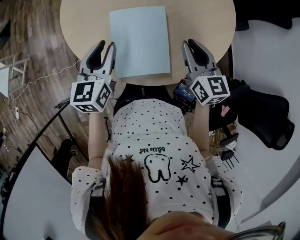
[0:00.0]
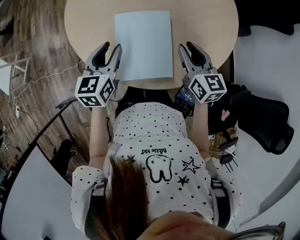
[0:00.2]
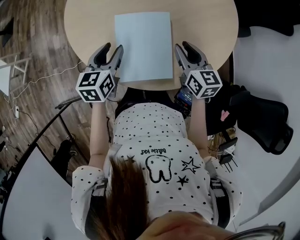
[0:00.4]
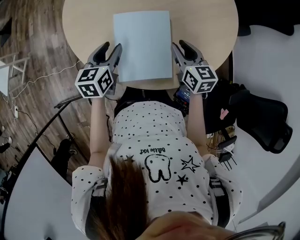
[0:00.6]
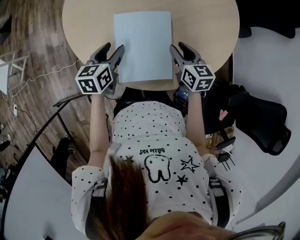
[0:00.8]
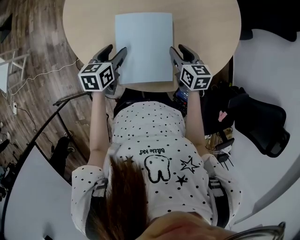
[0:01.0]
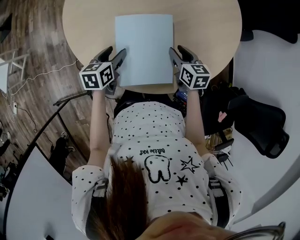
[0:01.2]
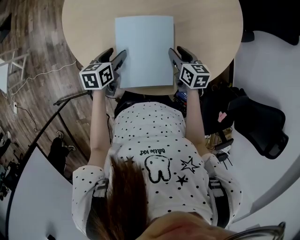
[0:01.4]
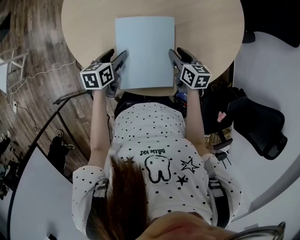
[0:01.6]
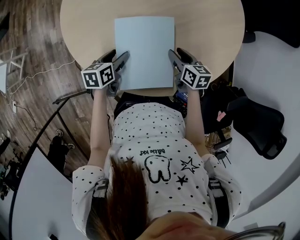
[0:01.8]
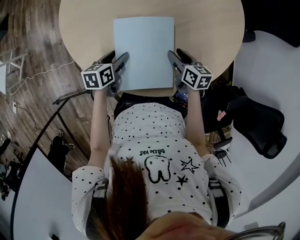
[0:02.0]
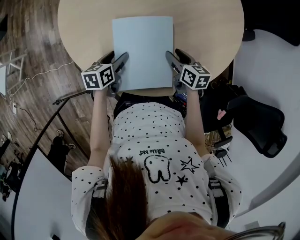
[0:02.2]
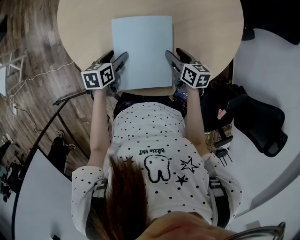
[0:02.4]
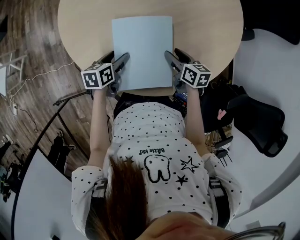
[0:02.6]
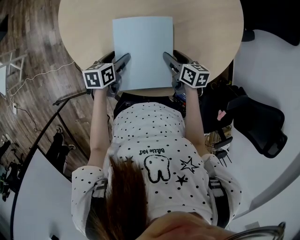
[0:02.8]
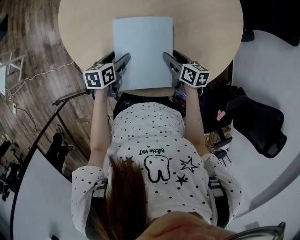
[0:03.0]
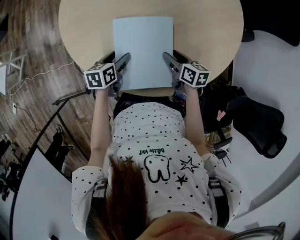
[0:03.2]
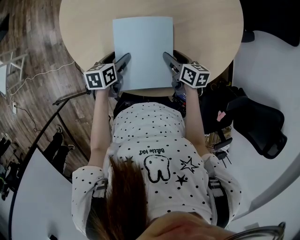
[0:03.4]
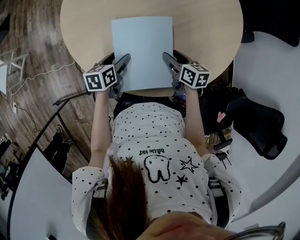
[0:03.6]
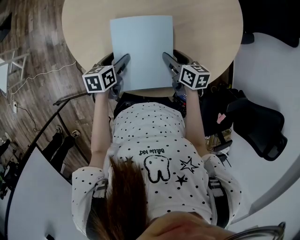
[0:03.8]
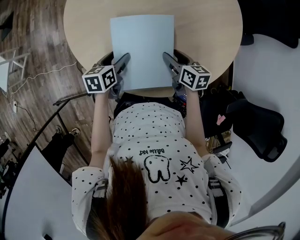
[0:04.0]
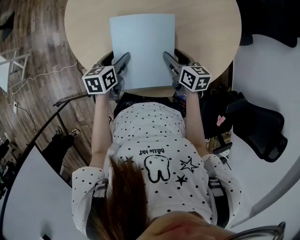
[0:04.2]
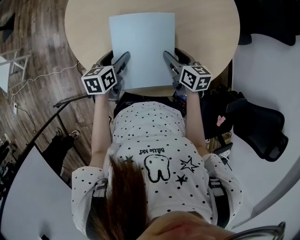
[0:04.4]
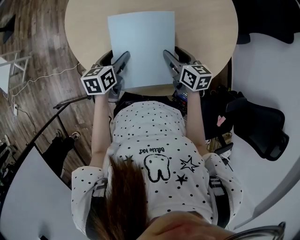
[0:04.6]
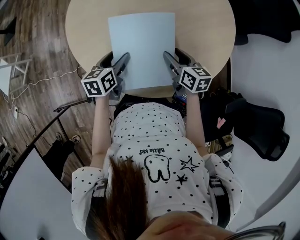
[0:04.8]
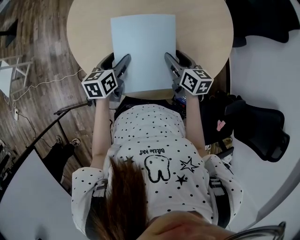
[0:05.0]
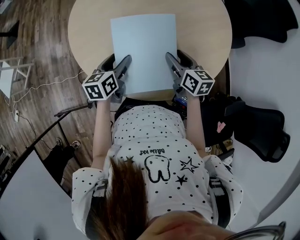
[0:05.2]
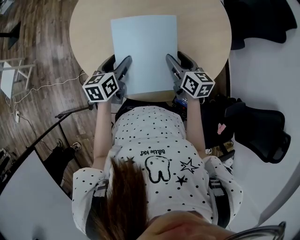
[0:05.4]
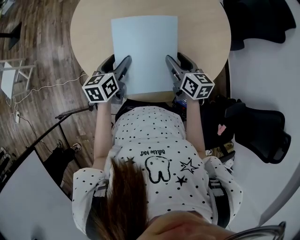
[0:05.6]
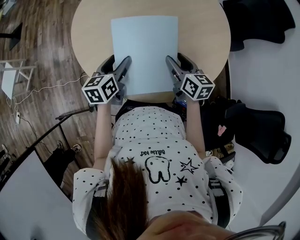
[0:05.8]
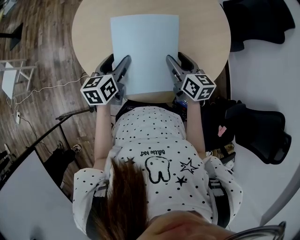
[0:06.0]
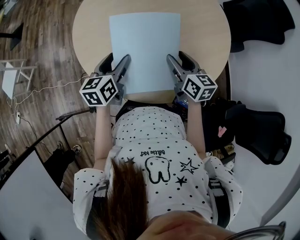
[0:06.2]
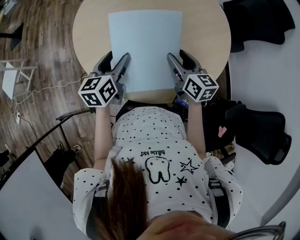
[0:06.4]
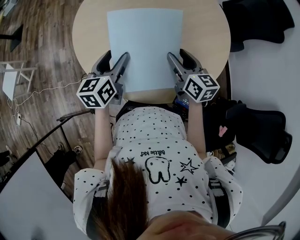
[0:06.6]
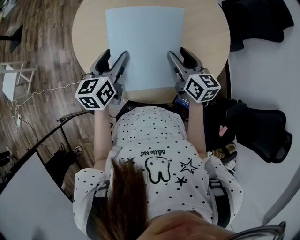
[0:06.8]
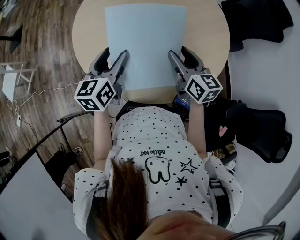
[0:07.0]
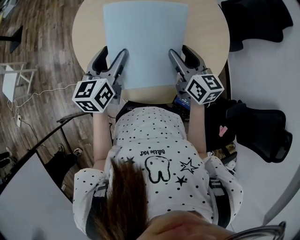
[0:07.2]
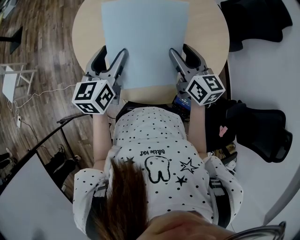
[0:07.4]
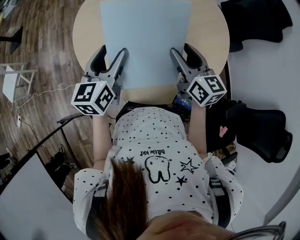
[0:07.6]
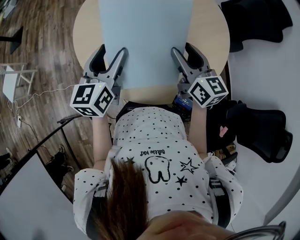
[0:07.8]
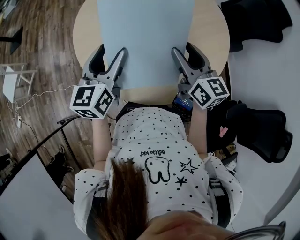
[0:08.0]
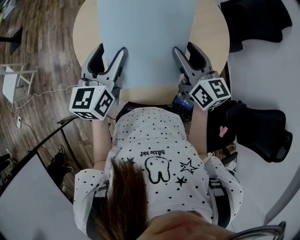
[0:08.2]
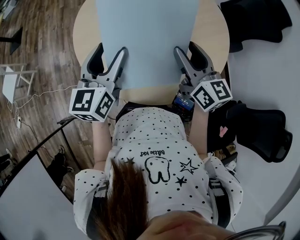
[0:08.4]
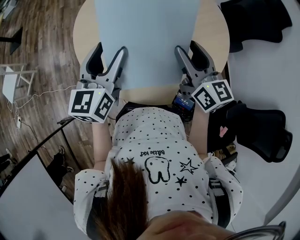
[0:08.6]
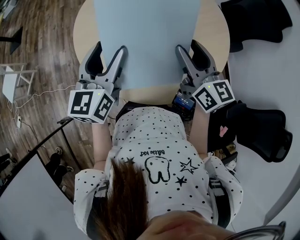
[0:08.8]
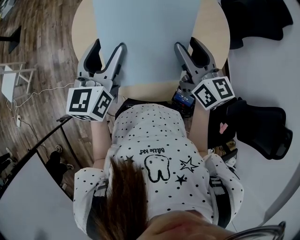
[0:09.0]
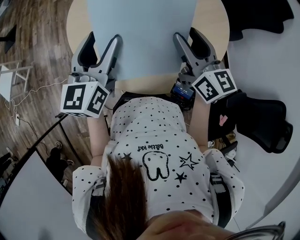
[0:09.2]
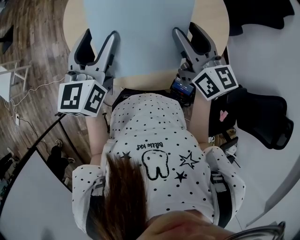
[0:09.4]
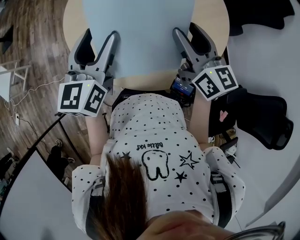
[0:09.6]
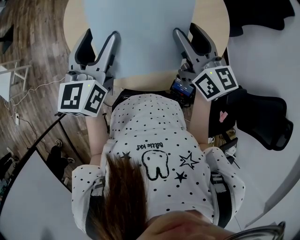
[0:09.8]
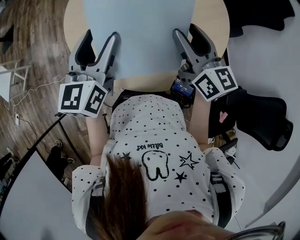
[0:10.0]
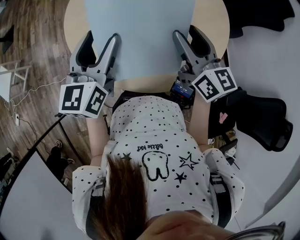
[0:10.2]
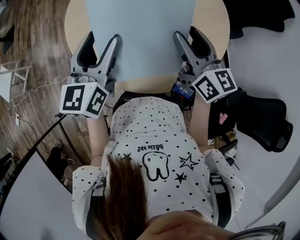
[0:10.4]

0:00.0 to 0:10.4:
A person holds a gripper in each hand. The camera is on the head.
0:00.0 to 0:01.4: The grippers both shift downward by approximately 15 cm. The left gripper changes its angle by approximately 30 degrees, and opens, while the right gripper changes its angle by roughly 20 degrees, and opens.
0:01.4 to 0:03.0: The grippers move only a little.
0:03.0 to 0:04.4: Both grippers move upward, about 5 cm.
0:04.4 to 0:06.0: The two grippers go roughly 10 cm upward.
0:06.0 to 0:07.4: Both grippers travel together upward, approximately 10 cm.
0:07.4 to 0:09.0: The grippers both shift upward by about 5 cm.
0:09.0 to 0:10.4: The two grippers keep their place.

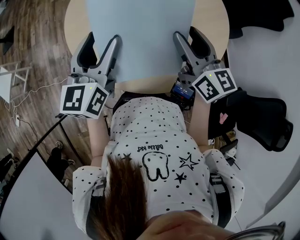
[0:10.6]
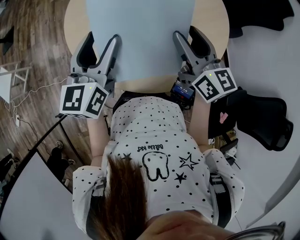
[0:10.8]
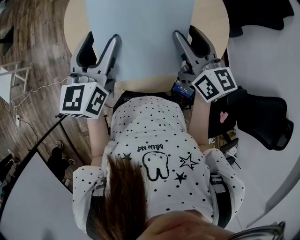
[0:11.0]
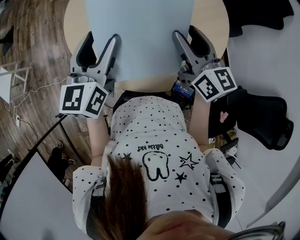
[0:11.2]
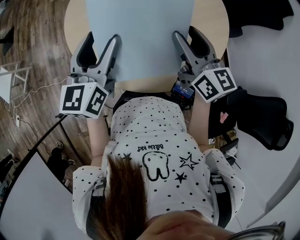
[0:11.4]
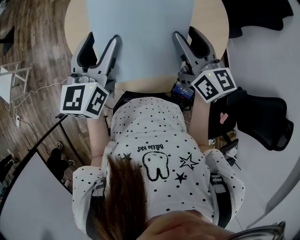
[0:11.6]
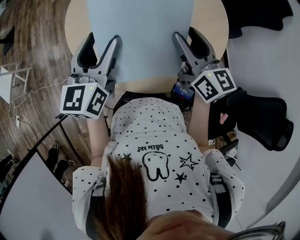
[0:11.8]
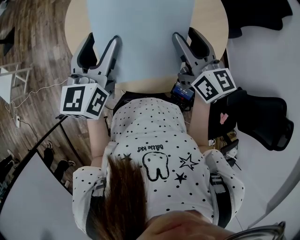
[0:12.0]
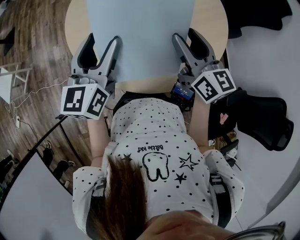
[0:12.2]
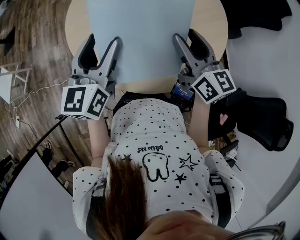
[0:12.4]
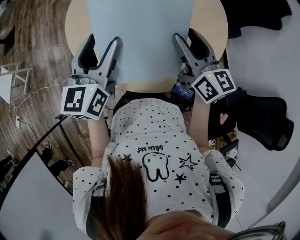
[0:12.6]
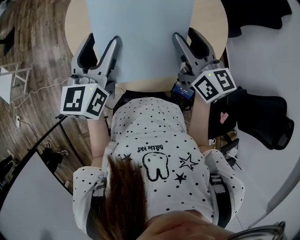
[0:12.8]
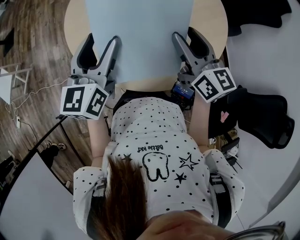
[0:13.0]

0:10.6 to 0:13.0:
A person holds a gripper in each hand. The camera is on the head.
0:10.6 to 0:13.0: Both grippers stay put.

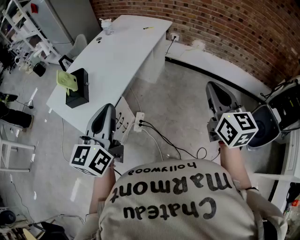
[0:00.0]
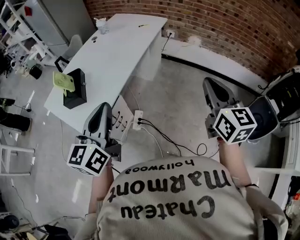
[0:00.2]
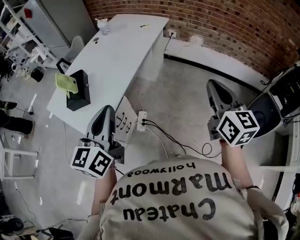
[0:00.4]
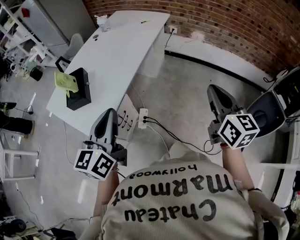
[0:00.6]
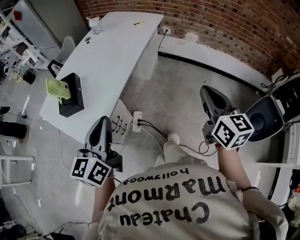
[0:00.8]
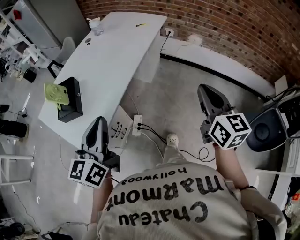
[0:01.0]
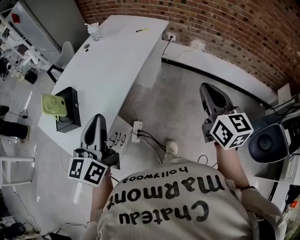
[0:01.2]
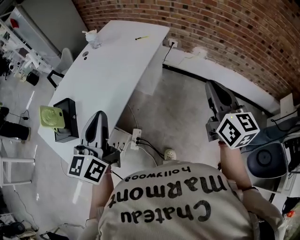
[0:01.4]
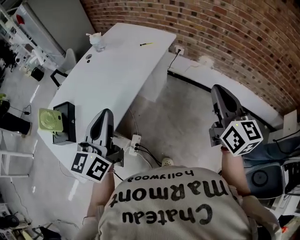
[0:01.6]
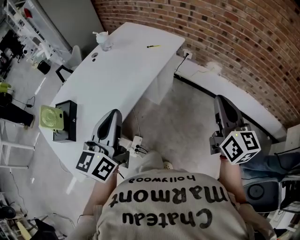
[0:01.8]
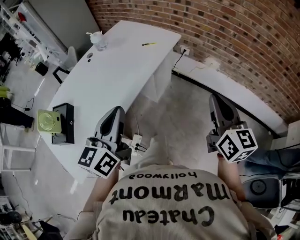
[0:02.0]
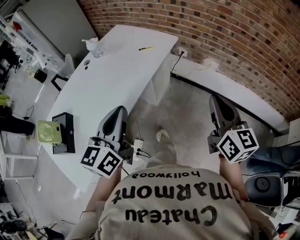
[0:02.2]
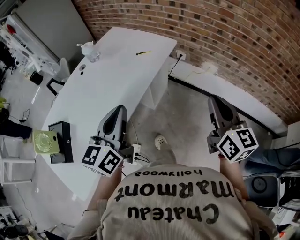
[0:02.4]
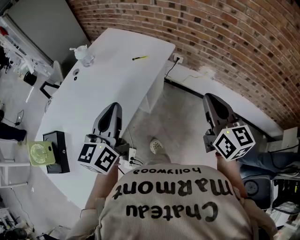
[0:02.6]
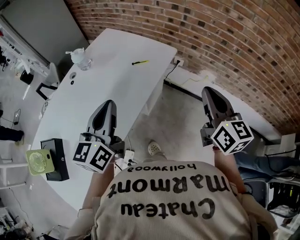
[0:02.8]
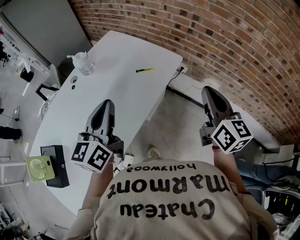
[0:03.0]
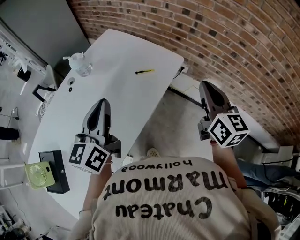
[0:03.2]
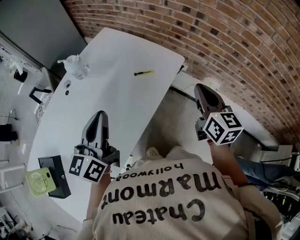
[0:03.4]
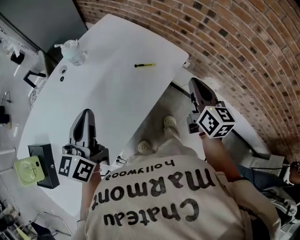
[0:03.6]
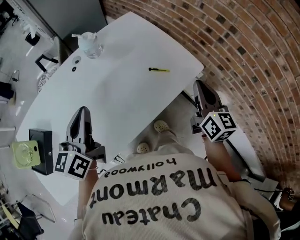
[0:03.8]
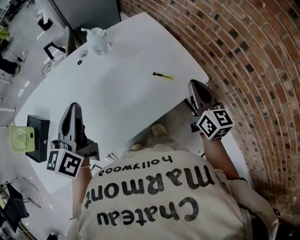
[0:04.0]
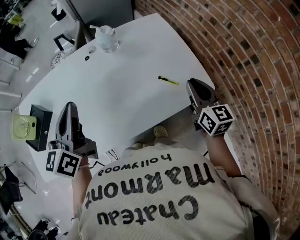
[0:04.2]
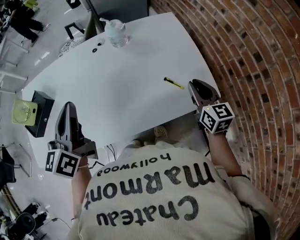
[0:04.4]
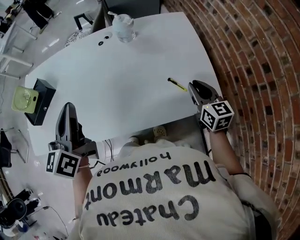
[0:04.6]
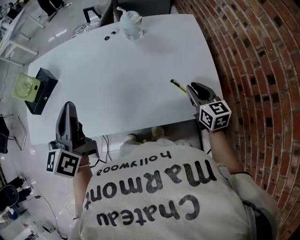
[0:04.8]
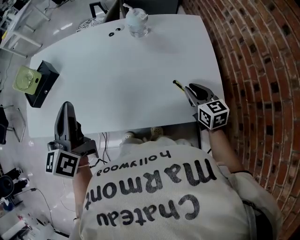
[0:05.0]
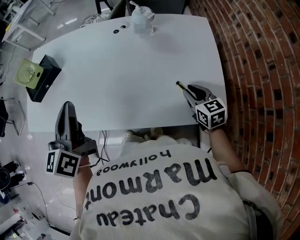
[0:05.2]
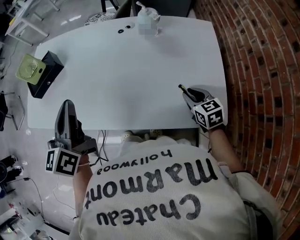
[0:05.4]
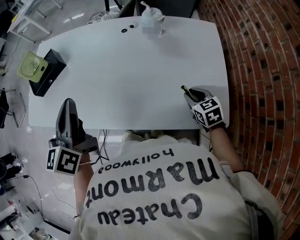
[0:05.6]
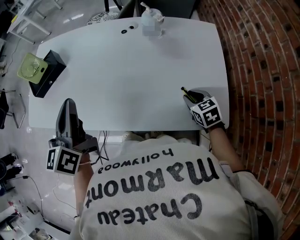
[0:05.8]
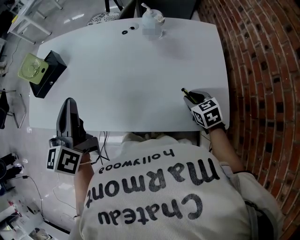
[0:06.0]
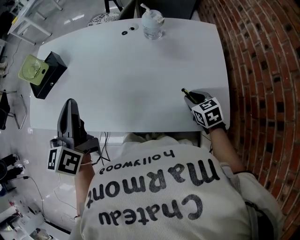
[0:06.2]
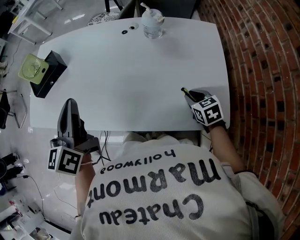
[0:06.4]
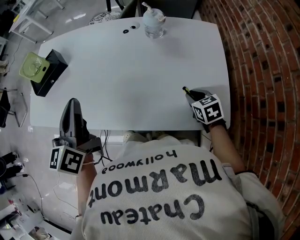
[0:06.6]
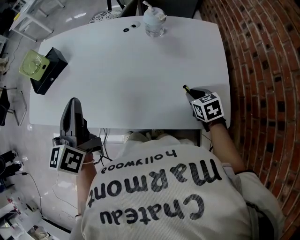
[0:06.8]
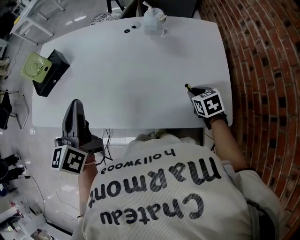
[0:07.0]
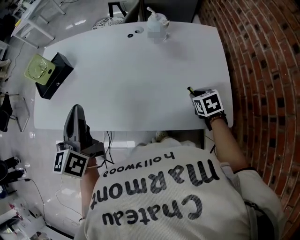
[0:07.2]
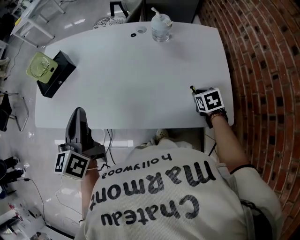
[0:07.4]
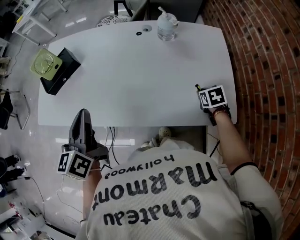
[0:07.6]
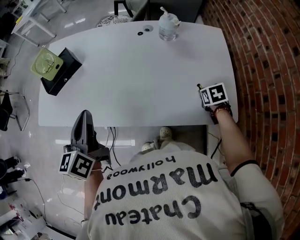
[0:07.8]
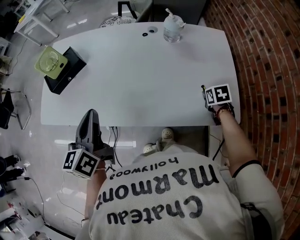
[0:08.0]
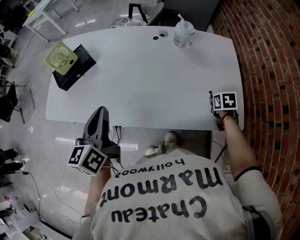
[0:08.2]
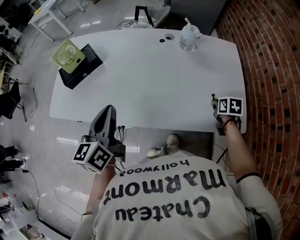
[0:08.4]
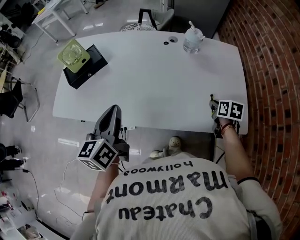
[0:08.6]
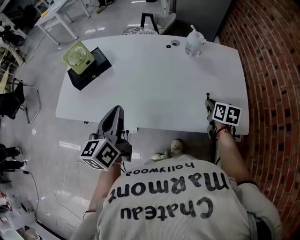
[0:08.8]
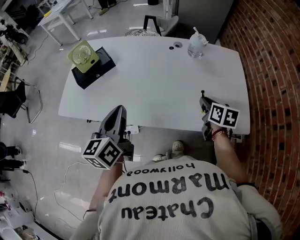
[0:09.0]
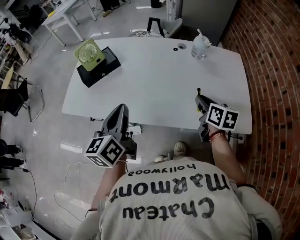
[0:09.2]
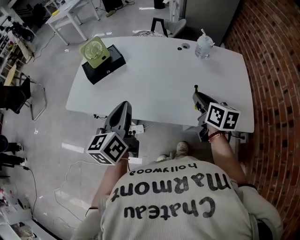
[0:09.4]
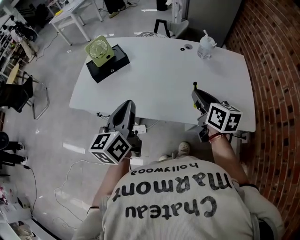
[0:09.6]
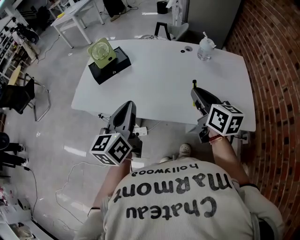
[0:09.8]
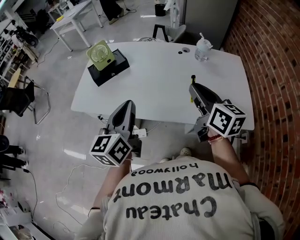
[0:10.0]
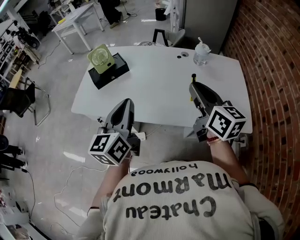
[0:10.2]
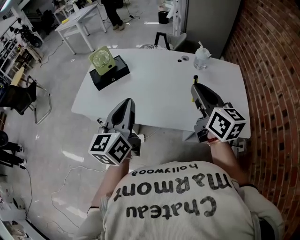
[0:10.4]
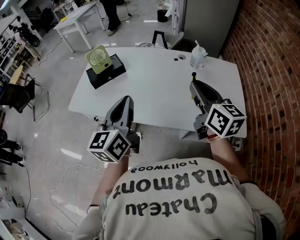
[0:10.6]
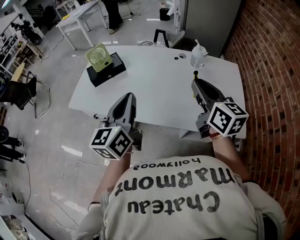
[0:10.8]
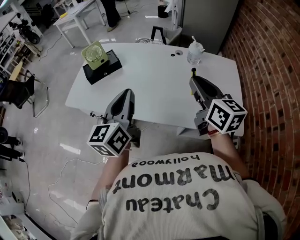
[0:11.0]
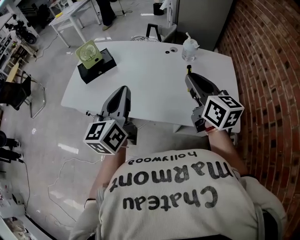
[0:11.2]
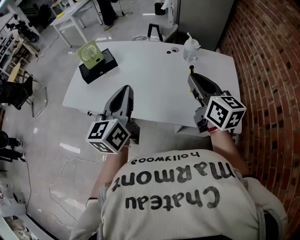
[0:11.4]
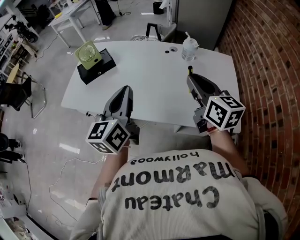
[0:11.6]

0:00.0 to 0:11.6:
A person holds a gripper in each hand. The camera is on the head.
0:00.0 to 0:01.4: Both grippers move forward, roughly 25 cm.
0:01.4 to 0:02.8: The grippers both shift forward by roughly 35 cm.
0:02.8 to 0:04.4: The right gripper moves about 40 cm, and rotates approximately 50 degrees; the left gripper moves about 15 cm, and turns by about 50 degrees.
0:04.4 to 0:05.8: The left gripper changes place by approximately 5 cm, and swivels approximately 20 degrees. Meanwhile the right gripper heads downward, covering roughly 15 cm, and tilts its fingers roughly 30 degrees downward.
0:05.8 to 0:07.2: There are only small adjustments of the grippers.
0:07.2 to 0:08.8: The right gripper is displaced to the left and upward by about 10 cm, and rotates roughly 30 degrees, while the left gripper is displaced to the left by about 5 cm.
0:08.8 to 0:10.2: The right gripper moves upward and to the left, roughly 30 cm, and tips its fingers upward by about 40 degrees. The left gripper moves upward and backward, approximately 10 cm.
0:10.2 to 0:11.6: Both grippers move to the right, approximately 10 cm.
